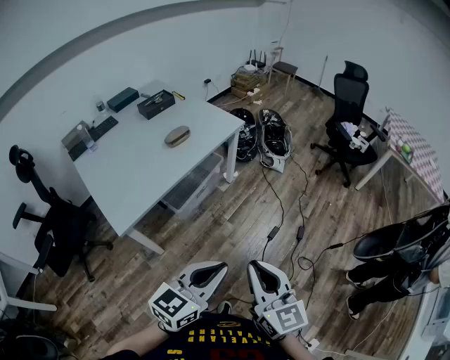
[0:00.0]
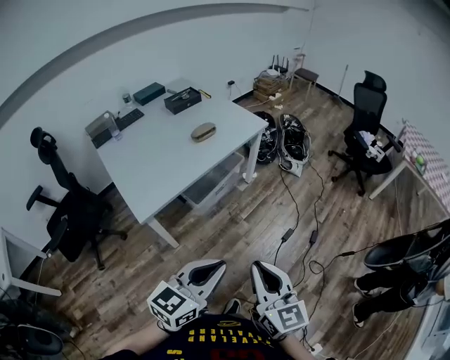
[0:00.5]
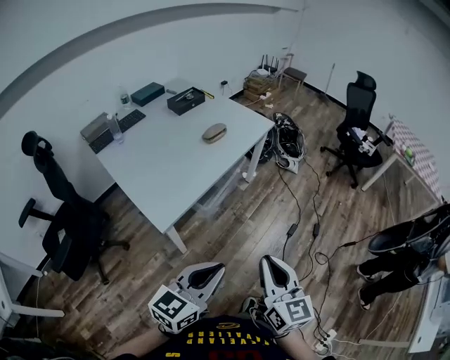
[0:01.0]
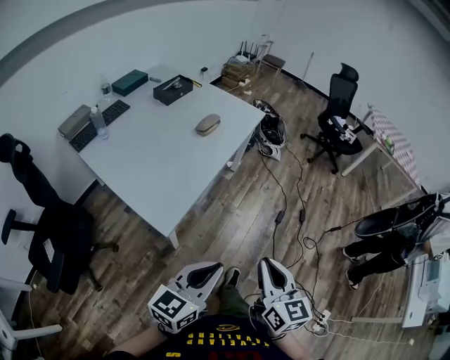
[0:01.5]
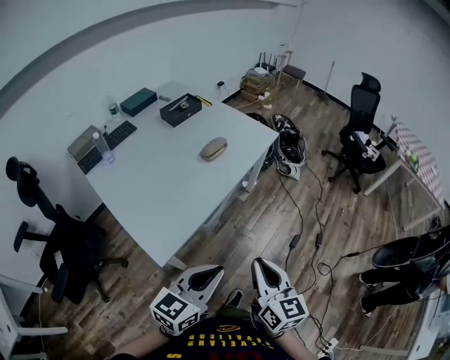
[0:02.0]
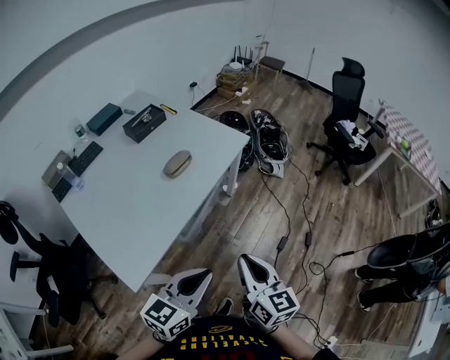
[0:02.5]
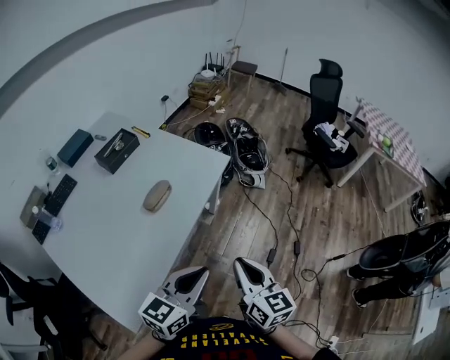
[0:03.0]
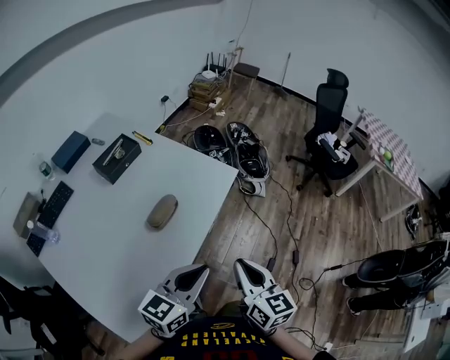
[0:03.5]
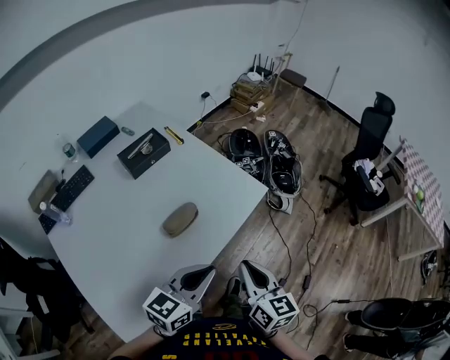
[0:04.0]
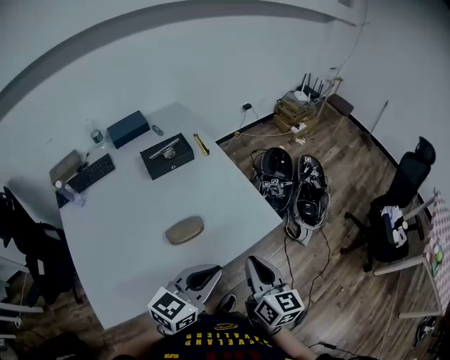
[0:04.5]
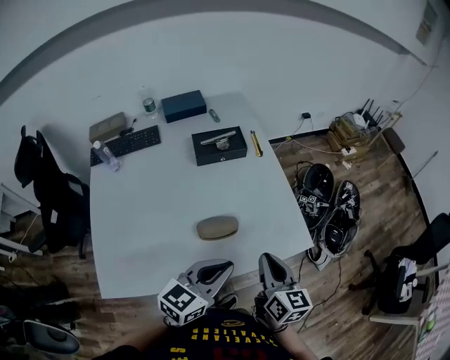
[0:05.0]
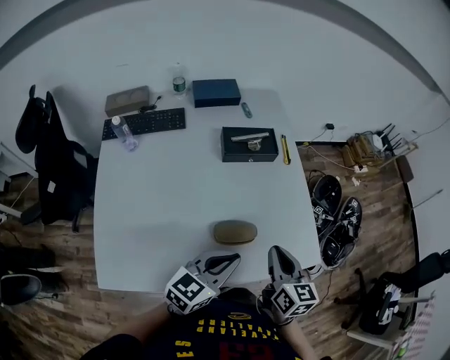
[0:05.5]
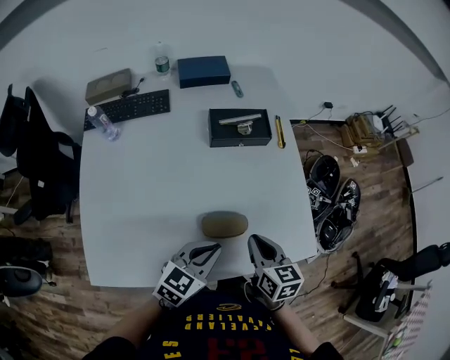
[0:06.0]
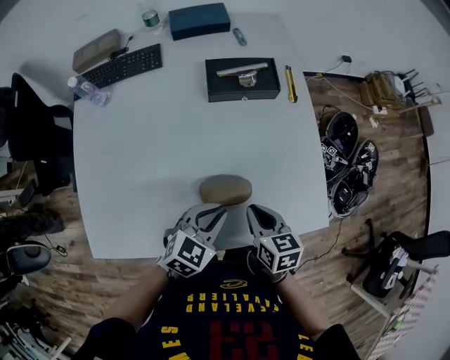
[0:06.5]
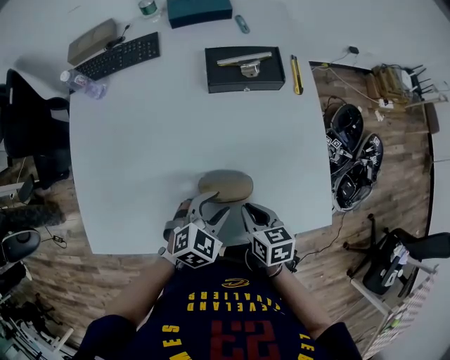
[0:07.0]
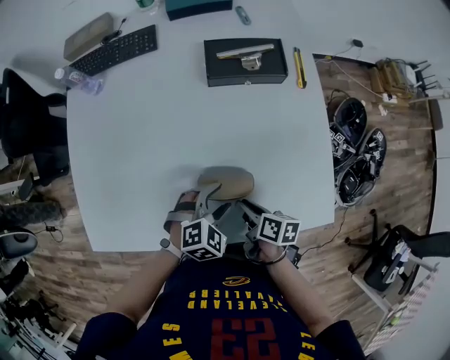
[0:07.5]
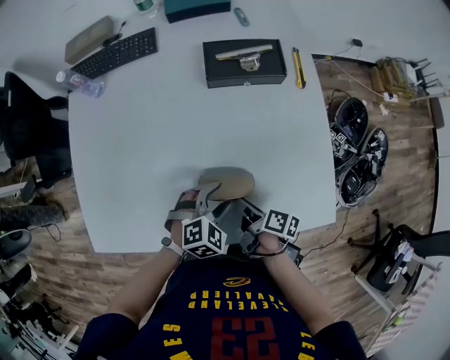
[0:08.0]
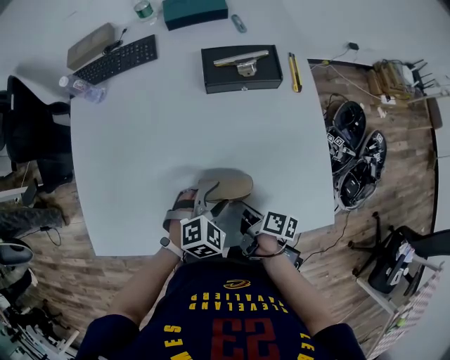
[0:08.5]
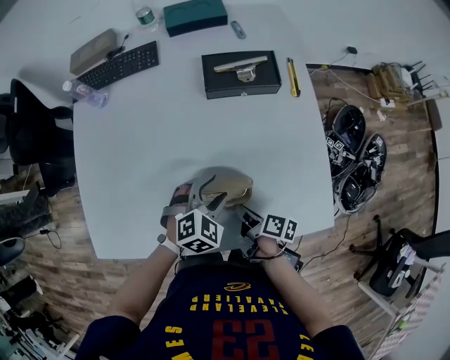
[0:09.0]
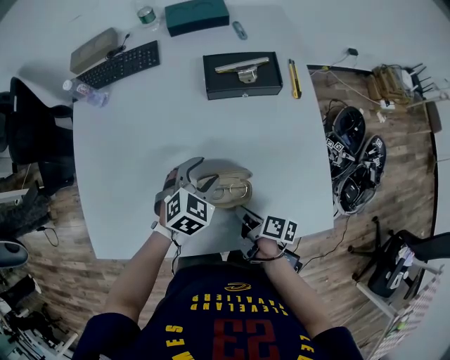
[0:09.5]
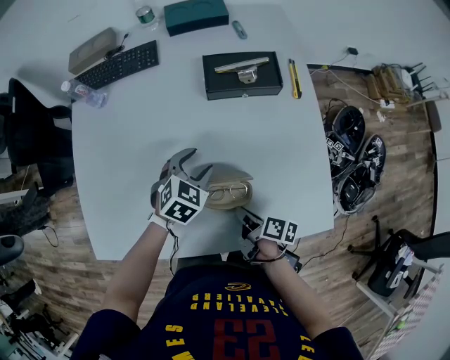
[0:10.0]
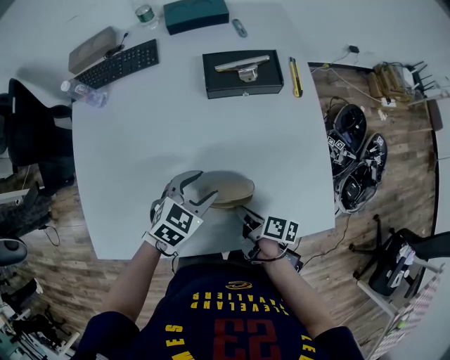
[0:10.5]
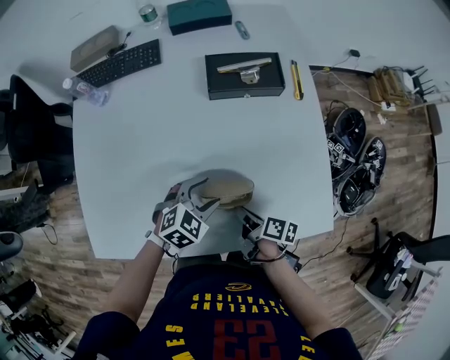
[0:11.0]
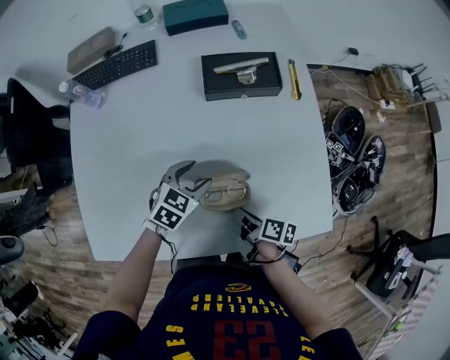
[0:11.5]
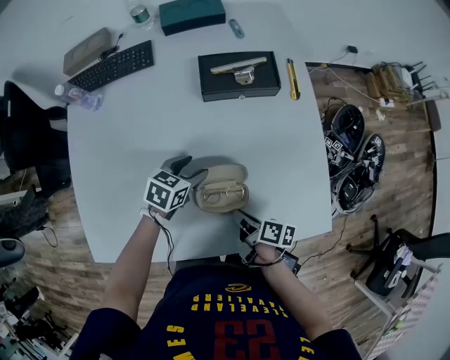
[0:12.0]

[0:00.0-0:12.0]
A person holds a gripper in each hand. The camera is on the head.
0:00.0 to 0:02.0: The grippers both shift to the left by approximately 25 cm.
0:02.0 to 0:04.0: The pair of grippers is taken forward, roughly 40 cm.
0:04.0 to 0:06.0: The right gripper changes place by some 25 cm, and rotates approximately 50 degrees; the left gripper shifts by some 20 cm, and changes its angle by some 30 degrees.
0:06.0 to 0:08.0: The grippers both shift downward by roughly 15 cm. The right gripper twists approximately 50 degrees clockwise, seen from behind; the left gripper changes its angle by roughly 40 degrees, and opens up.
0:08.0 to 0:10.0: The left gripper is displaced forward by approximately 15 cm.
0:10.0 to 0:12.0: The left gripper goes backward and returns, about 10 cm each way, and changes its angle by roughly 30 degrees.

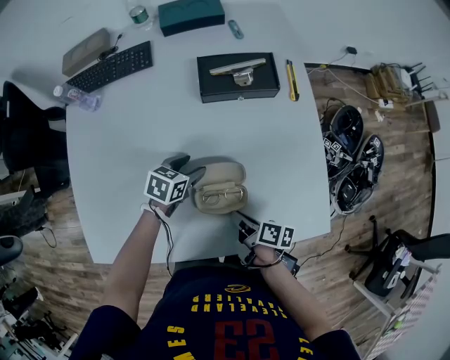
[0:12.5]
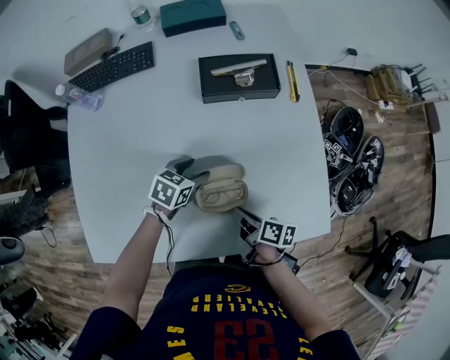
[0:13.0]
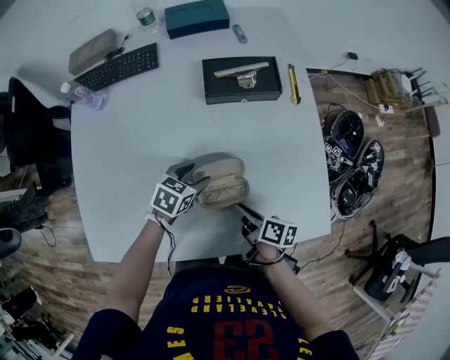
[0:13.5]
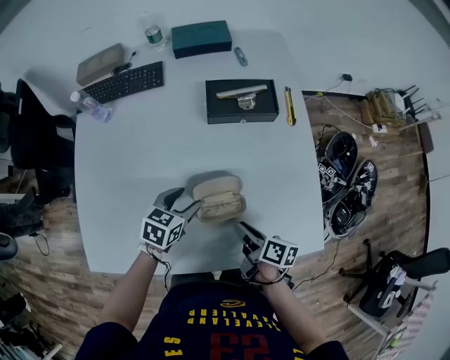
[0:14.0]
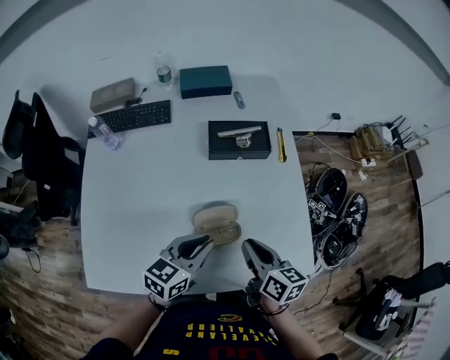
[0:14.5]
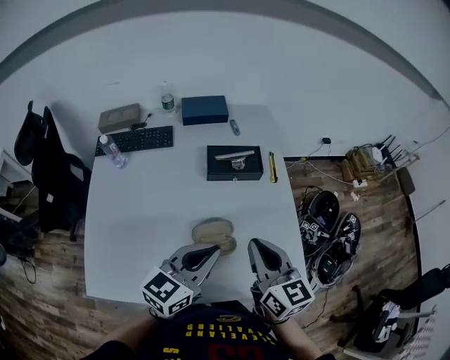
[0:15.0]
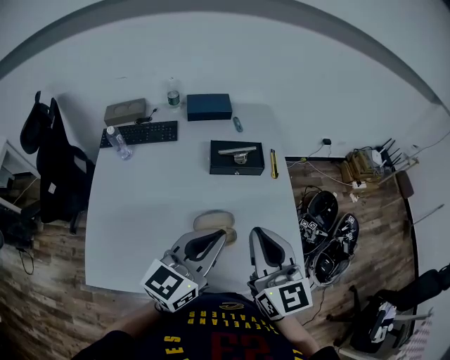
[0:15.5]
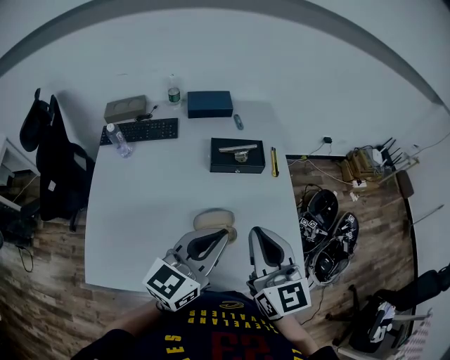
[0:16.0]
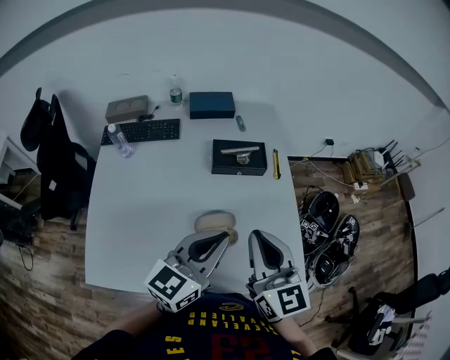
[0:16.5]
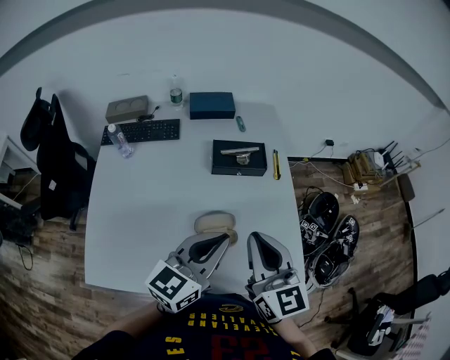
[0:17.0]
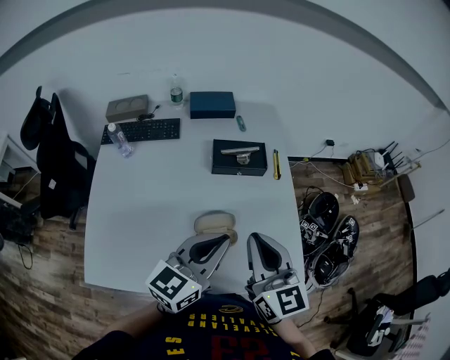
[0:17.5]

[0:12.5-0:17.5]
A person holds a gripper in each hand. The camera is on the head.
0:12.5 to 0:15.0: The grippers both shift upward by some 35 cm. The left gripper angles its fingers upward, by some 40 degrees, and closes up, while the right gripper rotates around the line of its fingers by roughly 60 degrees, counterclockwise from behind.
0:15.0 to 0:17.5: The right gripper changes place by approximately 5 cm.

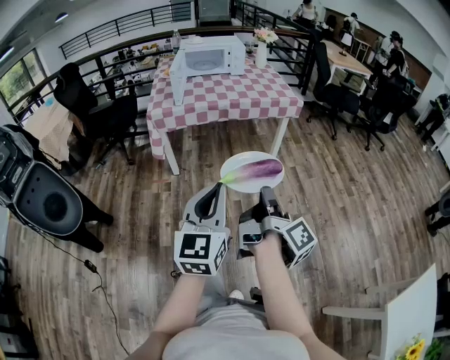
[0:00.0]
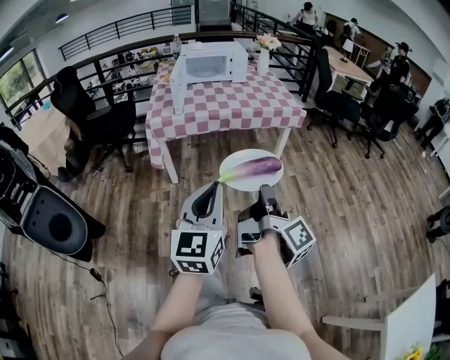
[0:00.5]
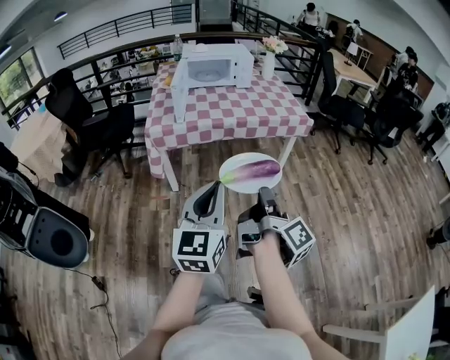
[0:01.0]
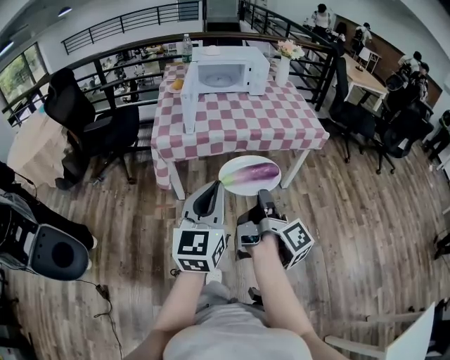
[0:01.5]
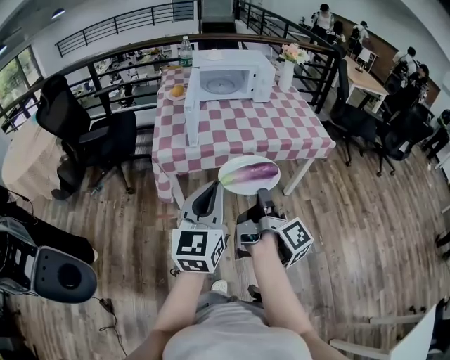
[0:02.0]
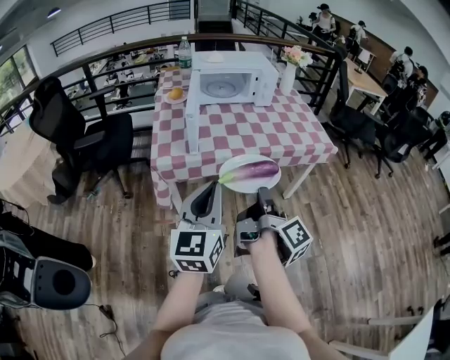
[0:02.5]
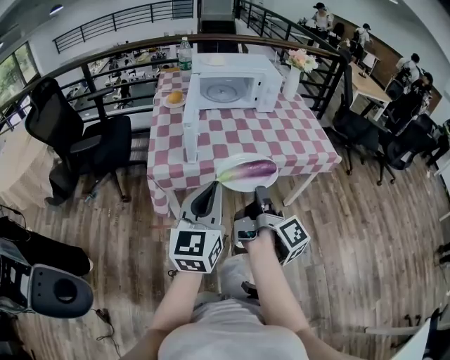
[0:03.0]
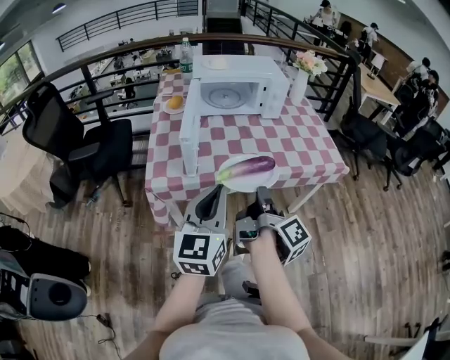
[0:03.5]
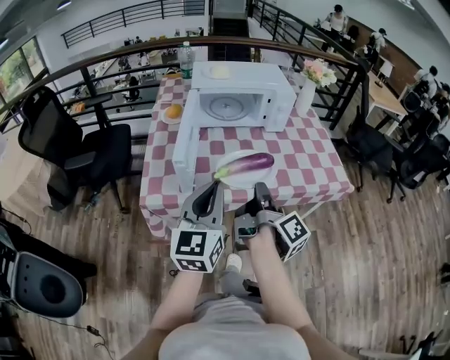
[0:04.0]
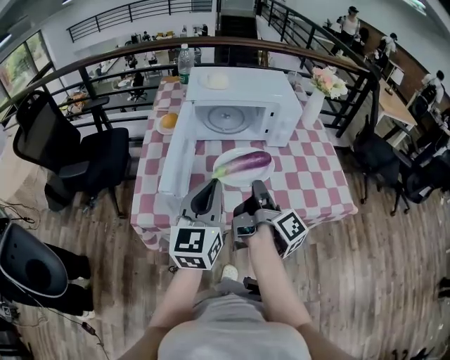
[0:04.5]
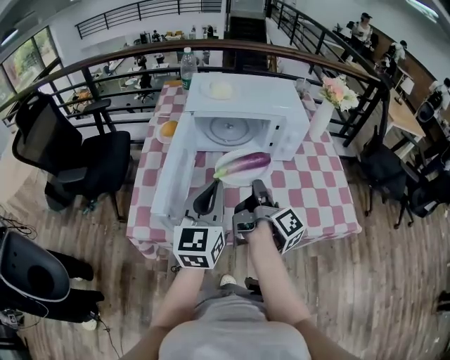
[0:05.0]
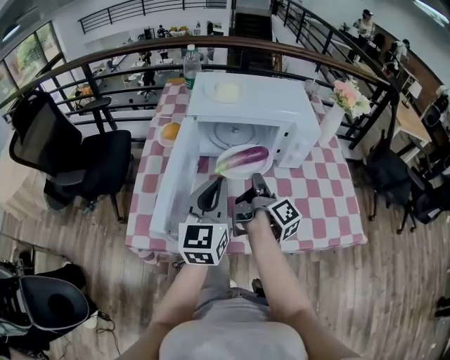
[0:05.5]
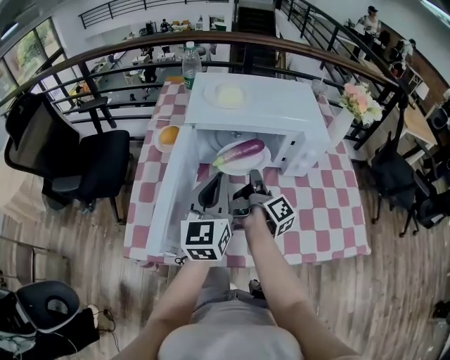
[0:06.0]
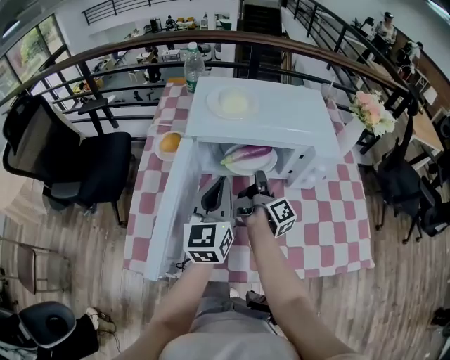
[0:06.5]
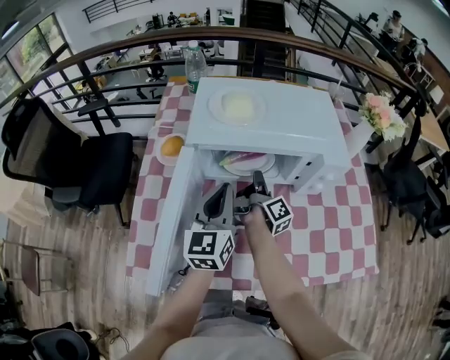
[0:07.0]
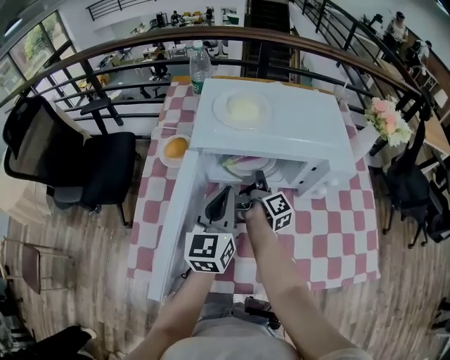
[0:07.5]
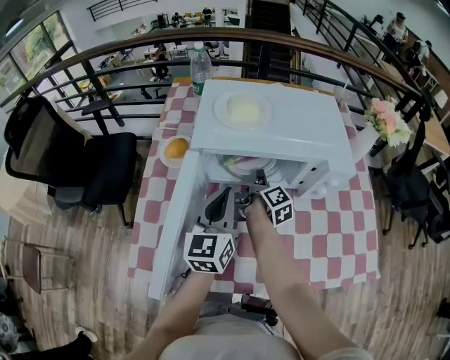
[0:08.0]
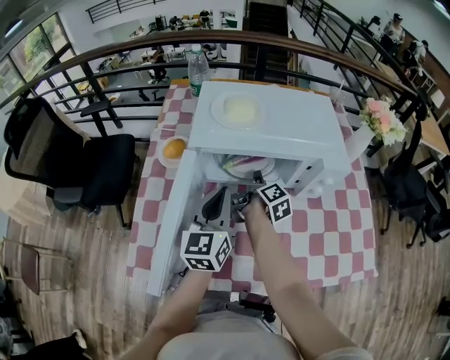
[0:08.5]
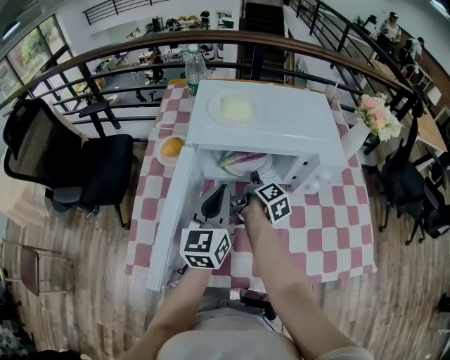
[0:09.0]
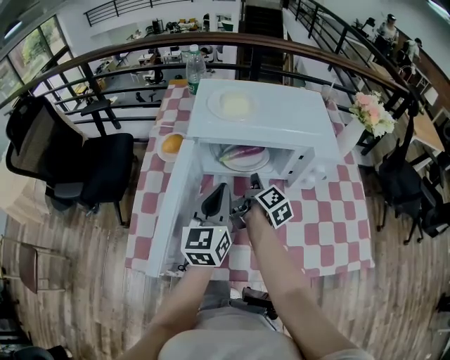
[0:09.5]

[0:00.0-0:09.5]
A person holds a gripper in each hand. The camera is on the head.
0:00.0 to 0:02.0: The left gripper changes place by approximately 40 cm.
0:02.0 to 0:04.0: The left gripper changes place by some 30 cm.
0:04.0 to 0:05.5: The left gripper shifts by approximately 25 cm.
0:05.5 to 0:07.5: The left gripper ends up about 15 cm from where it was.
